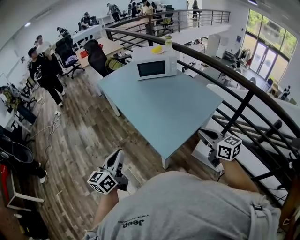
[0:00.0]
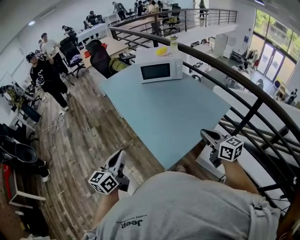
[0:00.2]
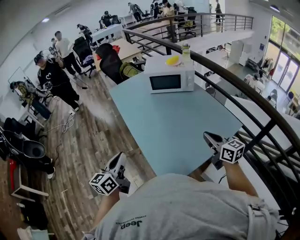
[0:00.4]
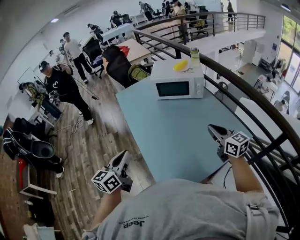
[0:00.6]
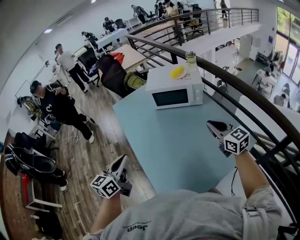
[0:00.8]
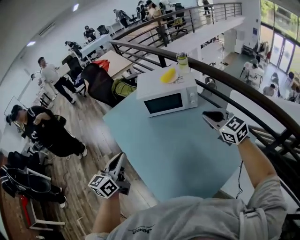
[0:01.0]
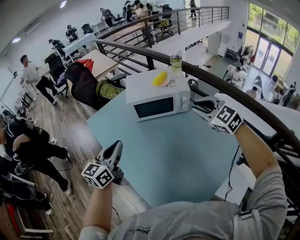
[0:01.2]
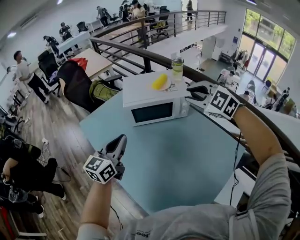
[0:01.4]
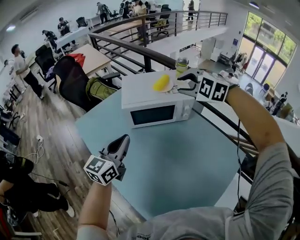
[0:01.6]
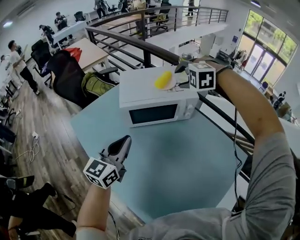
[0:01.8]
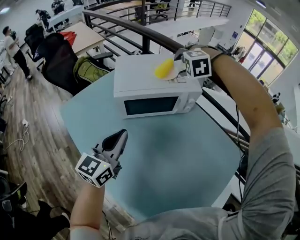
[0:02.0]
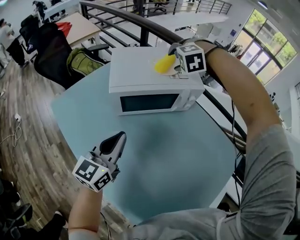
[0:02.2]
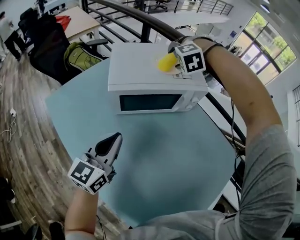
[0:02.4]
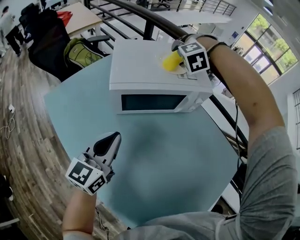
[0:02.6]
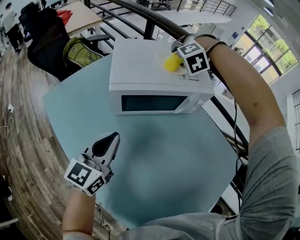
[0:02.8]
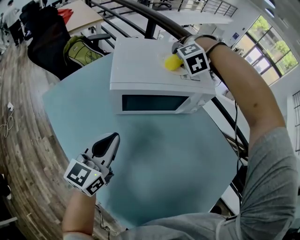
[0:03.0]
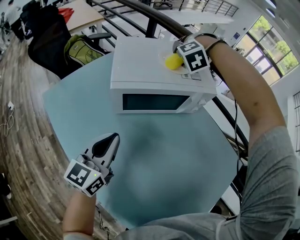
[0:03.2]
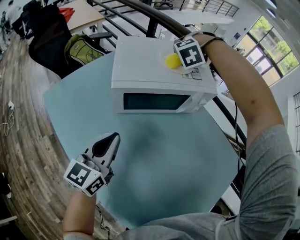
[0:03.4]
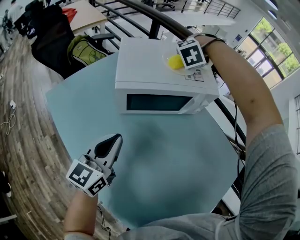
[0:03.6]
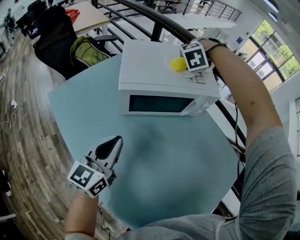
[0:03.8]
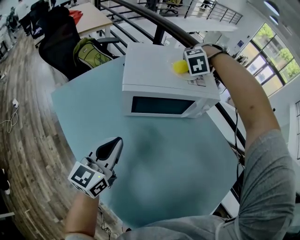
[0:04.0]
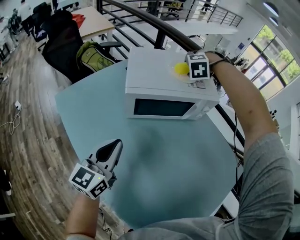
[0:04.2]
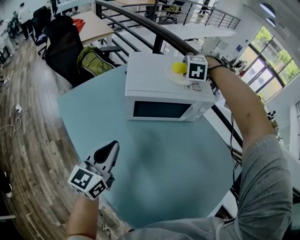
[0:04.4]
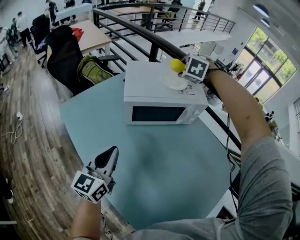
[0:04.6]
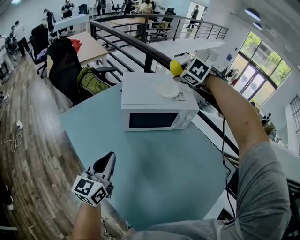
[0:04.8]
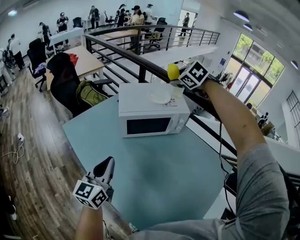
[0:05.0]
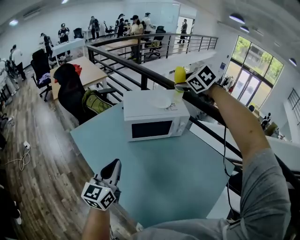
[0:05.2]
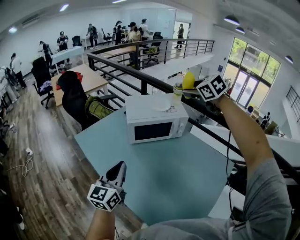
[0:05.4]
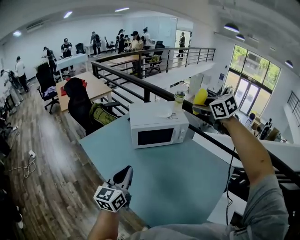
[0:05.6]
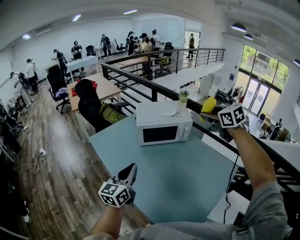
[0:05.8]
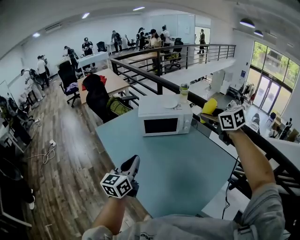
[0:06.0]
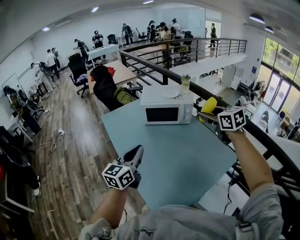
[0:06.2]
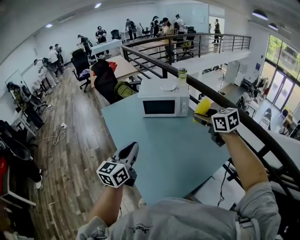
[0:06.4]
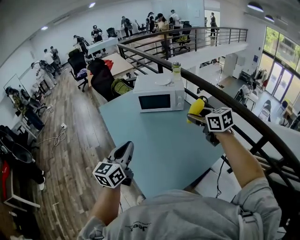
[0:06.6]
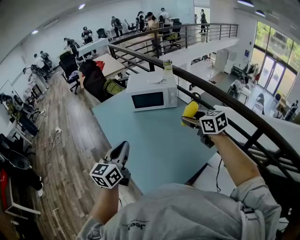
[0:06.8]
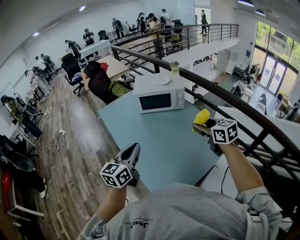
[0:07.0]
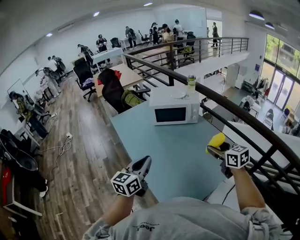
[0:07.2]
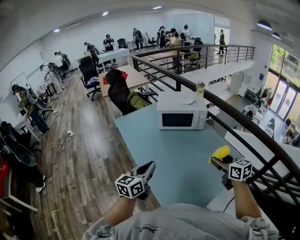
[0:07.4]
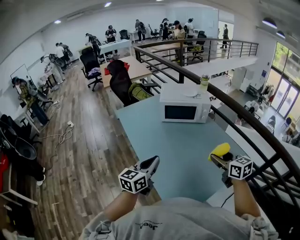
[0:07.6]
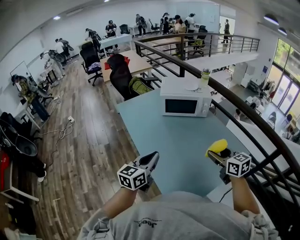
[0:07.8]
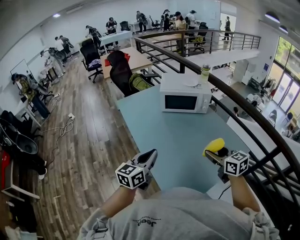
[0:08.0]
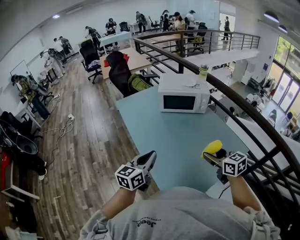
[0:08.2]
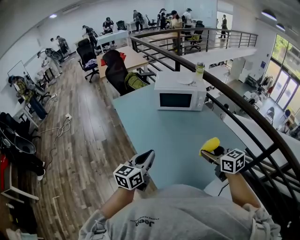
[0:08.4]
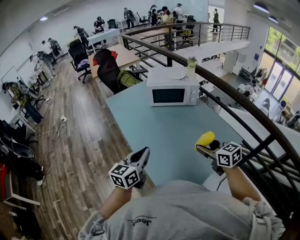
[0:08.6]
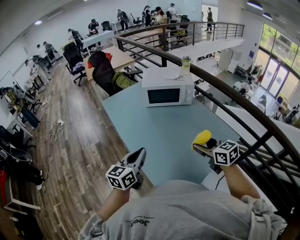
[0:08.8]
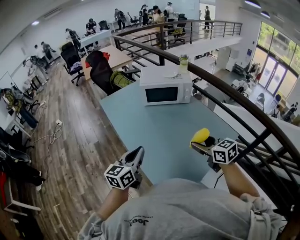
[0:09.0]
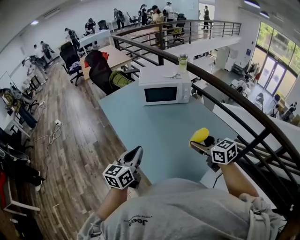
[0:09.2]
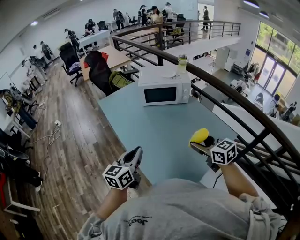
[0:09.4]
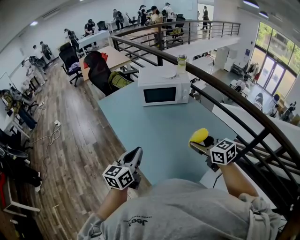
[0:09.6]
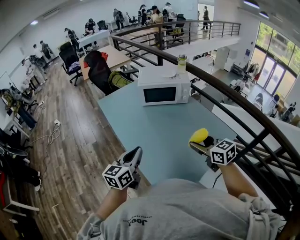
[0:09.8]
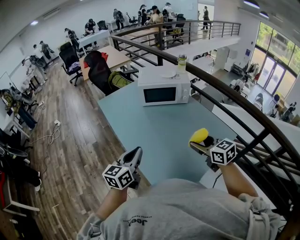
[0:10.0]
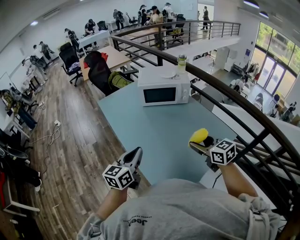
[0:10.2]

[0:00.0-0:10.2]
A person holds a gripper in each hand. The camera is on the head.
0.0 to 1.4 s: Both grippers are carried forward, roughly 60 cm. The right gripper rolls counterclockwise, seen from behind, by about 60 degrees, and opens its fingers.
1.4 to 3.0 s: The left gripper travels downward by roughly 15 cm. The right gripper moves roughly 40 cm, angles its fingers downward, by roughly 30 degrees, and opens.
3.0 to 4.4 s: The left gripper goes approximately 5 cm backward, while the right gripper rotates about 30 degrees.
4.4 to 5.8 s: The right gripper shifts roughly 40 cm backward and upward, and rolls clockwise, seen from behind, by roughly 70 degrees, while the left gripper moves backward and upward, some 25 cm.
5.8 to 7.2 s: The left gripper moves backward and to the right, some 15 cm, while the right gripper shifts about 30 cm backward and downward.
7.2 to 8.8 s: The right gripper moves to the left, roughly 5 cm.
8.8 to 10.2 s: Neither gripper changes place.

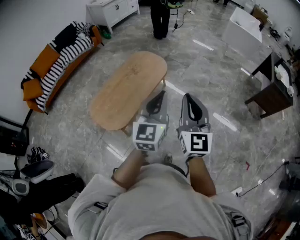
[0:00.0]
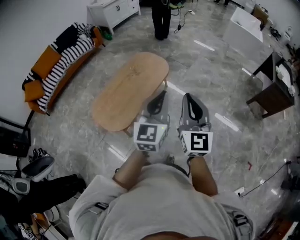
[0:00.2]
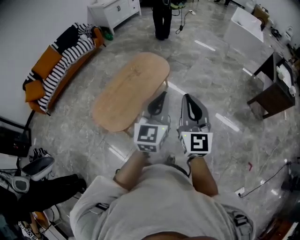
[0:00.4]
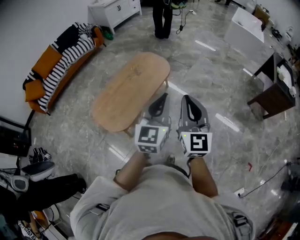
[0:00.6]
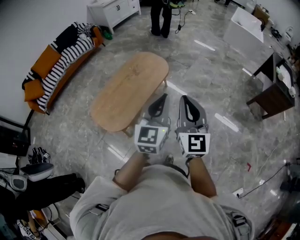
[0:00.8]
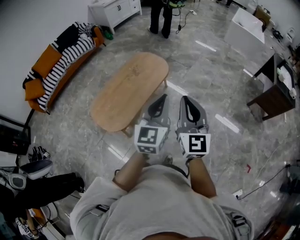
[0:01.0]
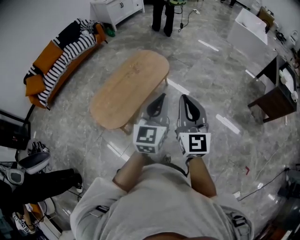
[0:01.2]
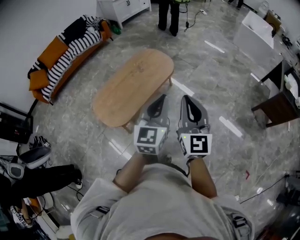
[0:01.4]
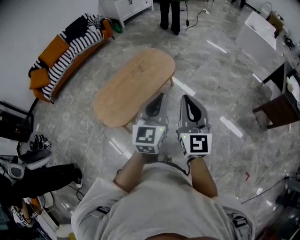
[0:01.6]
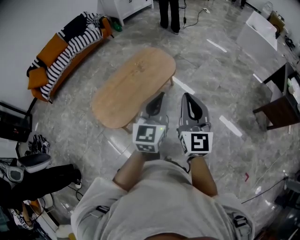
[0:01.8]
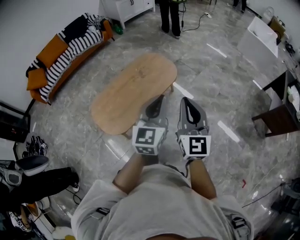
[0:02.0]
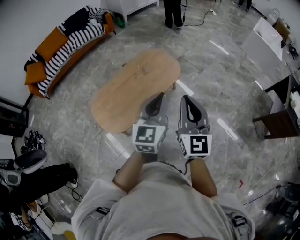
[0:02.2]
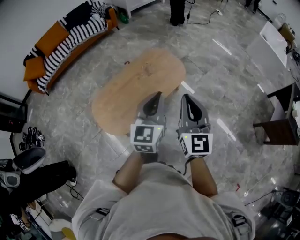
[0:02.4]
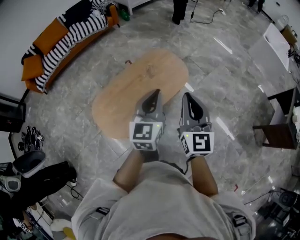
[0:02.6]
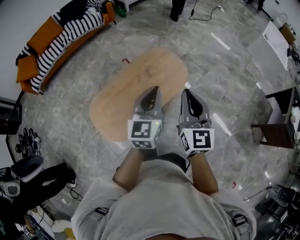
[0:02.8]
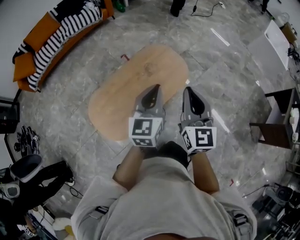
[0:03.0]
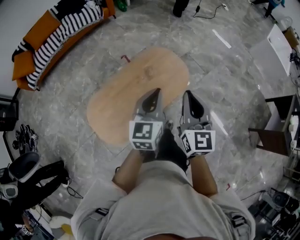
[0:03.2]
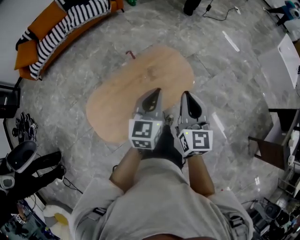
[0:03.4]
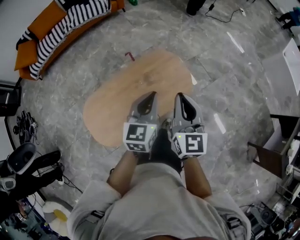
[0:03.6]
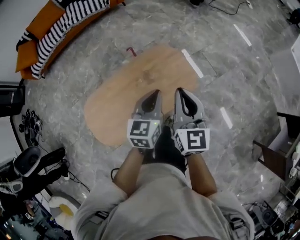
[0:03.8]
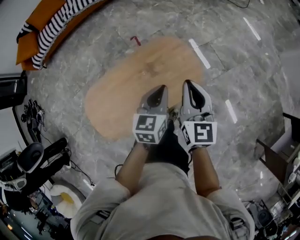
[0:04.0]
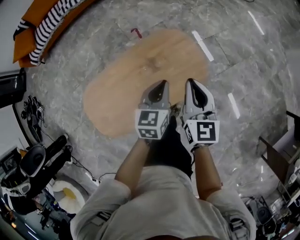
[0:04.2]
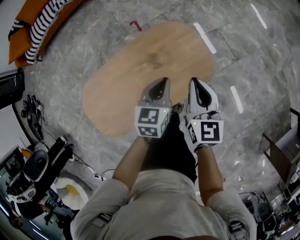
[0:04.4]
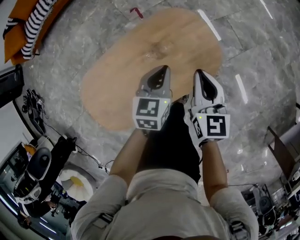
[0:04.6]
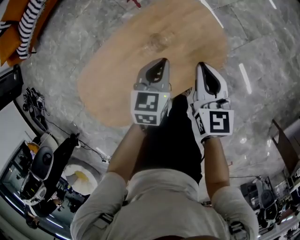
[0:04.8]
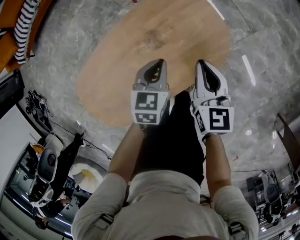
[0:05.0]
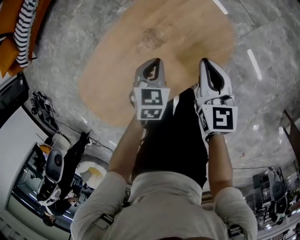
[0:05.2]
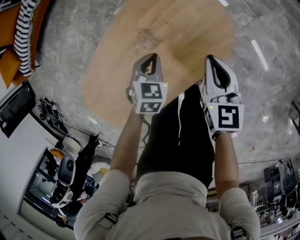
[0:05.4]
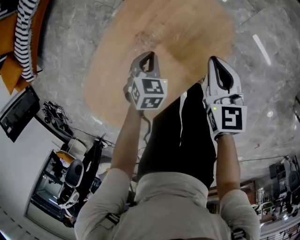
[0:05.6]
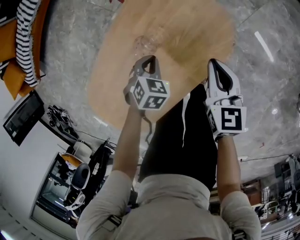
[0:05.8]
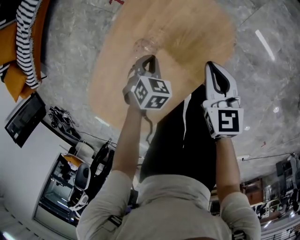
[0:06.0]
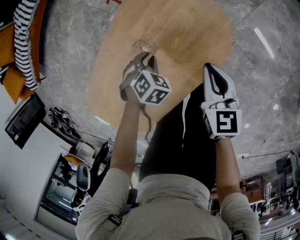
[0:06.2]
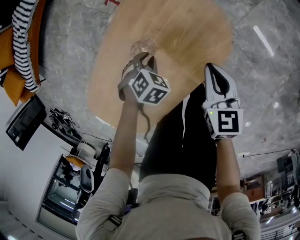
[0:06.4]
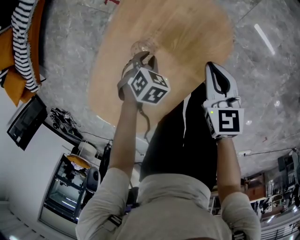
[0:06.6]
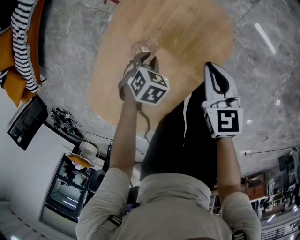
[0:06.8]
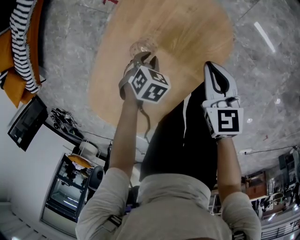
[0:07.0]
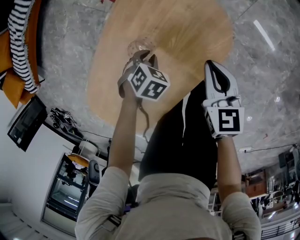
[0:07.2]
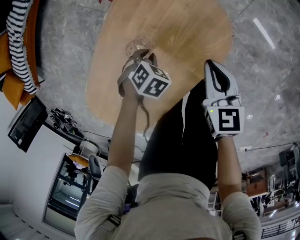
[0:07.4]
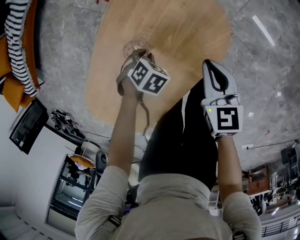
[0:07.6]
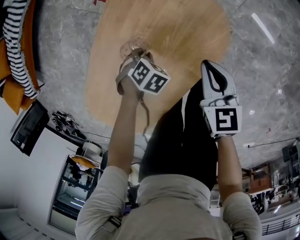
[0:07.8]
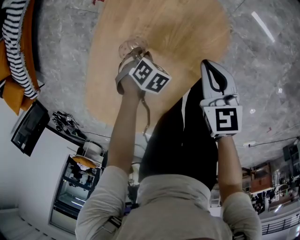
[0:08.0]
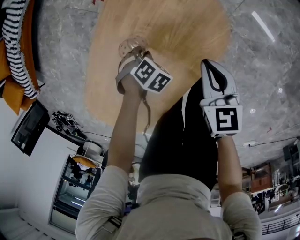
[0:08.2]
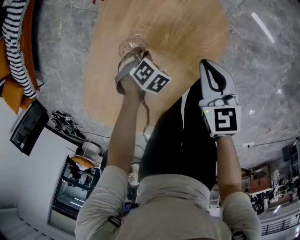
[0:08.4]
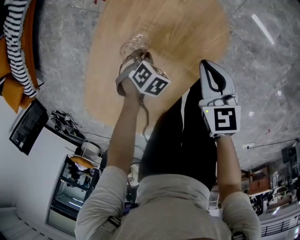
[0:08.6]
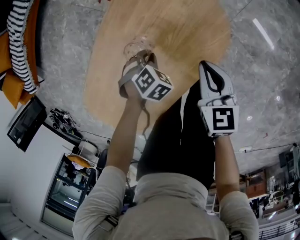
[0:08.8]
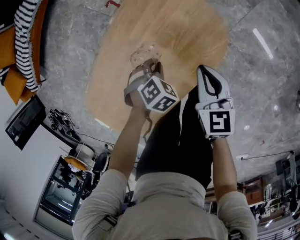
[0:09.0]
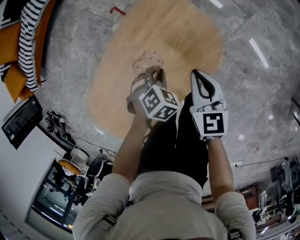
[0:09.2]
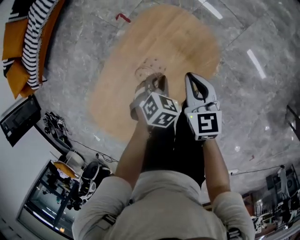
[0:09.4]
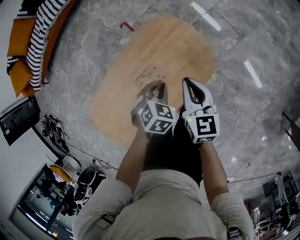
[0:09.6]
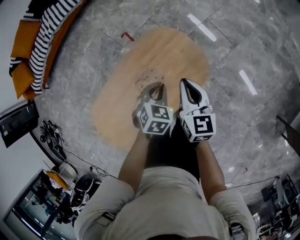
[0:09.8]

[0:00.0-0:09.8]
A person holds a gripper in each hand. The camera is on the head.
0.0 to 1.4 s: The left gripper ends up approximately 5 cm from where it was.
1.4 to 2.8 s: The two grippers go about 35 cm forward and to the left.
2.8 to 4.2 s: The grippers both shift forward and downward by some 35 cm. The left gripper swivels approximately 30 degrees. The right gripper rotates about 20 degrees.
4.2 to 5.6 s: The two grippers go roughly 25 cm downward. The right gripper rotates approximately 20 degrees. Meanwhile the left gripper angles its fingers downward, by about 30 degrees.
5.6 to 7.0 s: The left gripper travels downward by approximately 5 cm, and rotates some 30 degrees.
7.0 to 8.4 s: The left gripper travels downward by some 5 cm.
8.4 to 9.8 s: The two grippers go roughly 25 cm upward. The left gripper turns by roughly 50 degrees.

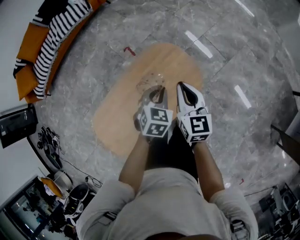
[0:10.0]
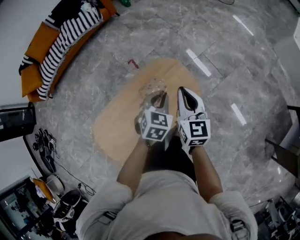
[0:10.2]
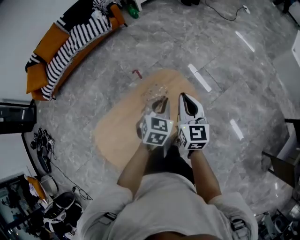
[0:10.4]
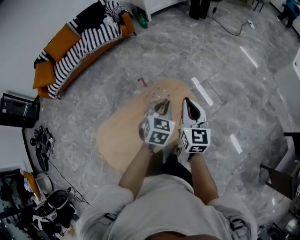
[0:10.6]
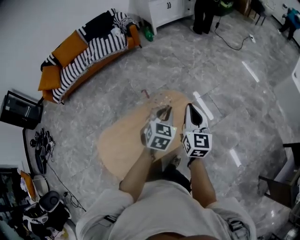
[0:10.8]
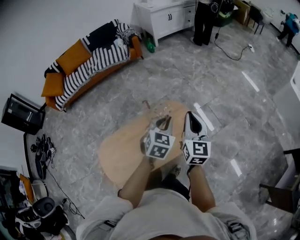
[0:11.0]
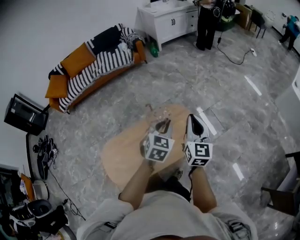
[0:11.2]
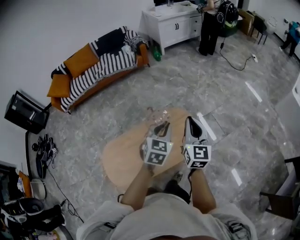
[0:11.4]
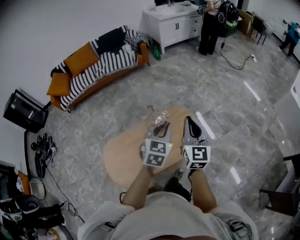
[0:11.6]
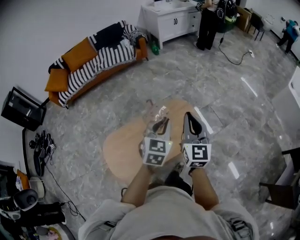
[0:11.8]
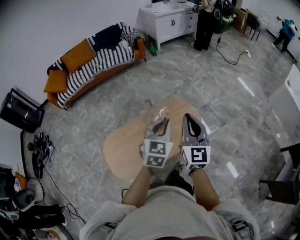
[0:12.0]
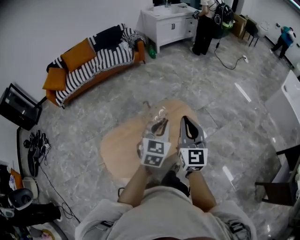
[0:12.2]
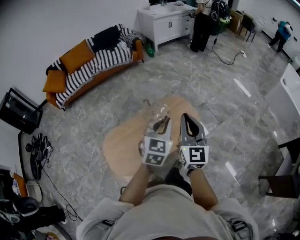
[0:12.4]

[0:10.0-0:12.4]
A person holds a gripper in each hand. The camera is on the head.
10.0 to 11.2 s: Both grippers travel together upward, approximately 20 cm. The left gripper turns by approximately 20 degrees.
11.2 to 12.4 s: The right gripper shifts approximately 20 cm backward and to the left; the left gripper goes about 20 cm backward, to the left and upward.

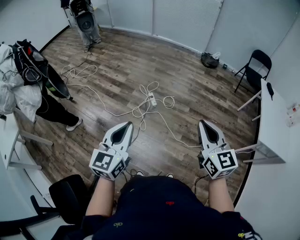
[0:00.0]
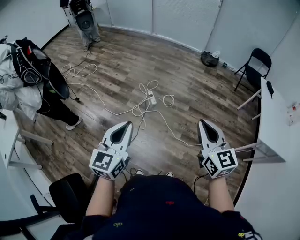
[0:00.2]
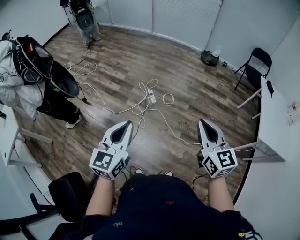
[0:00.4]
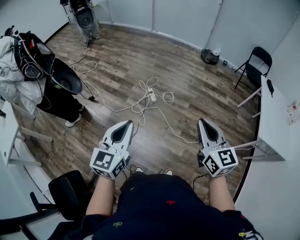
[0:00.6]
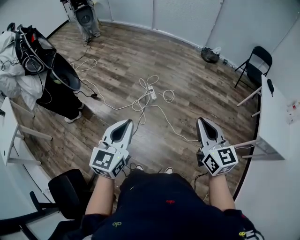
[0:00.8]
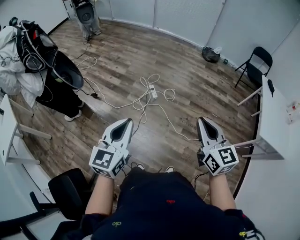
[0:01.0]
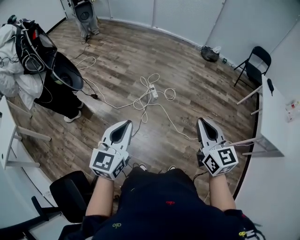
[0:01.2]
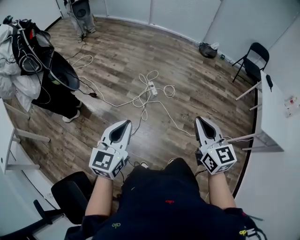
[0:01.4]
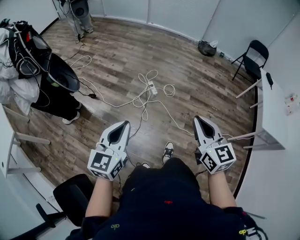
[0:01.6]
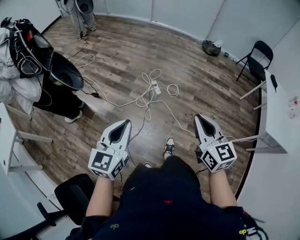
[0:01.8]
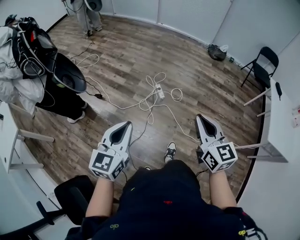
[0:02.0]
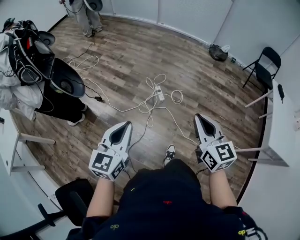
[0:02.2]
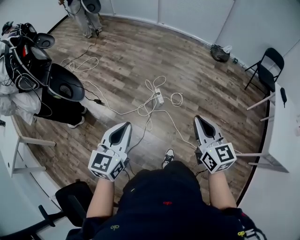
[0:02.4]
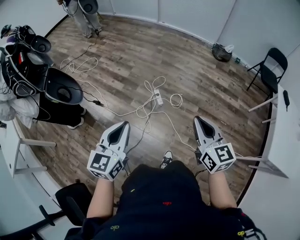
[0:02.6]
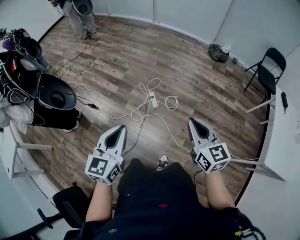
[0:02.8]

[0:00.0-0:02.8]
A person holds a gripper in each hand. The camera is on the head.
0.0 to 1.4 s: The grippers both shift to the left by some 10 cm.
1.4 to 2.8 s: The grippers both shift forward by some 25 cm.
